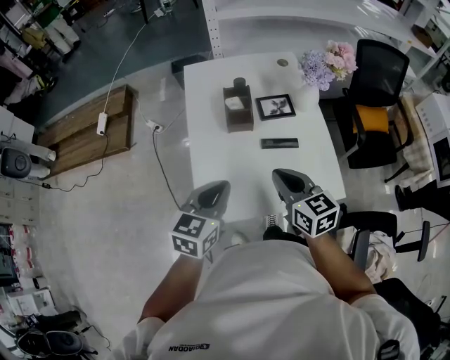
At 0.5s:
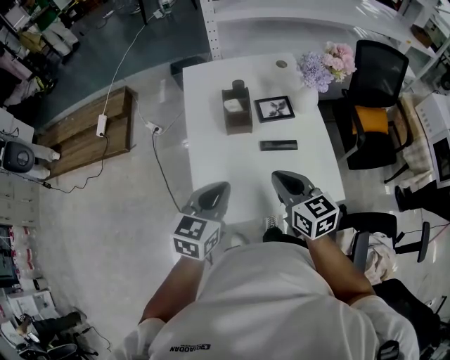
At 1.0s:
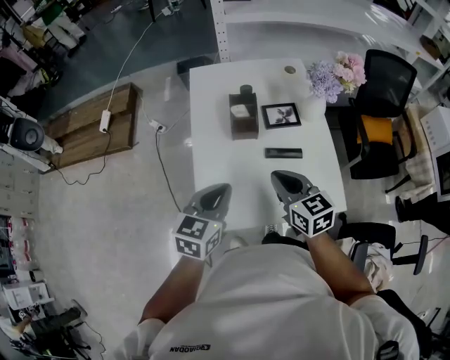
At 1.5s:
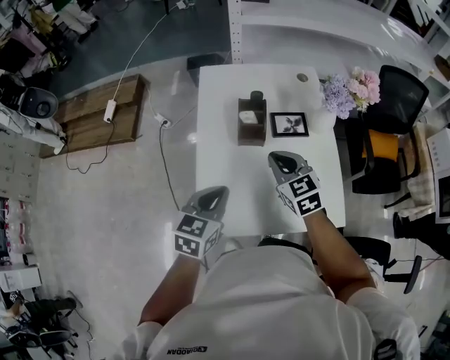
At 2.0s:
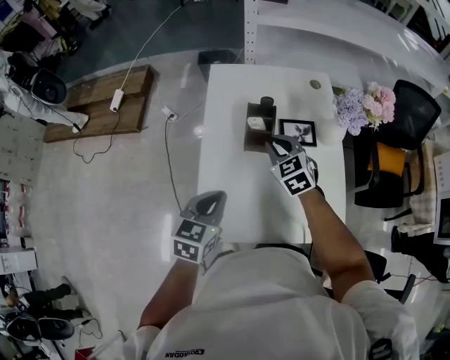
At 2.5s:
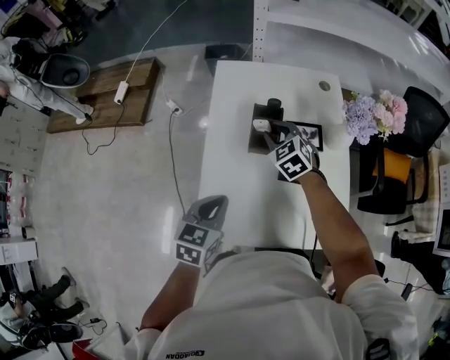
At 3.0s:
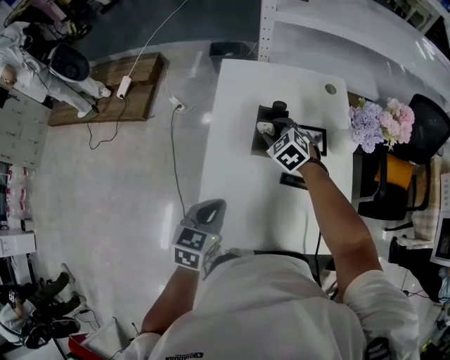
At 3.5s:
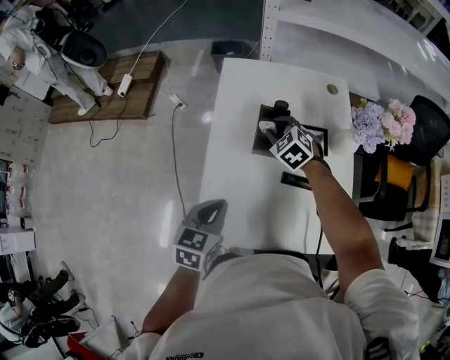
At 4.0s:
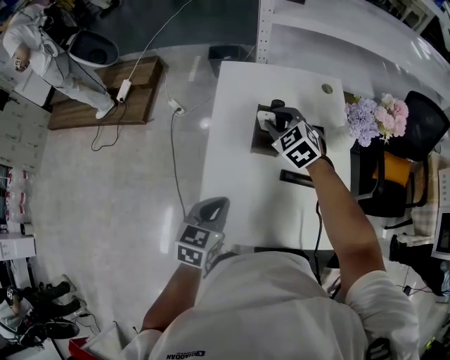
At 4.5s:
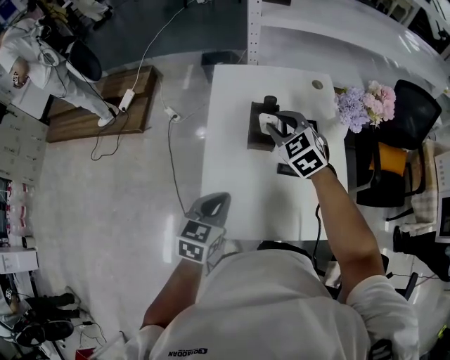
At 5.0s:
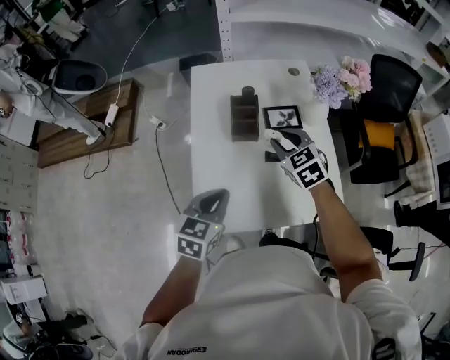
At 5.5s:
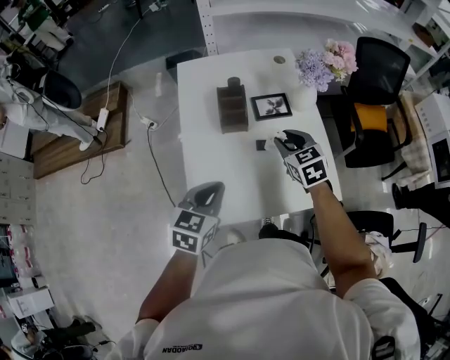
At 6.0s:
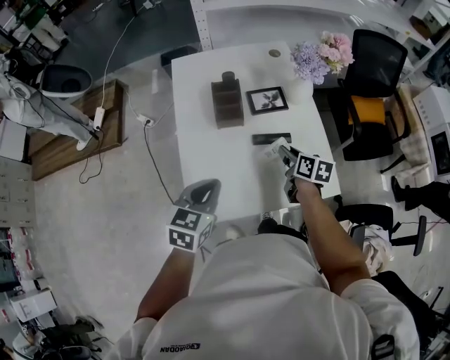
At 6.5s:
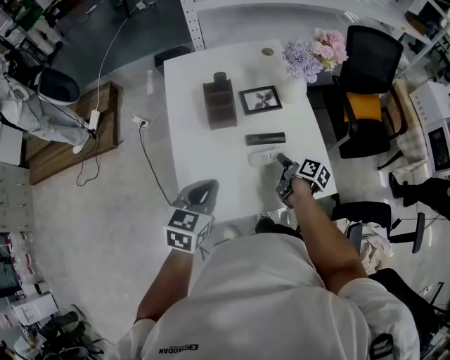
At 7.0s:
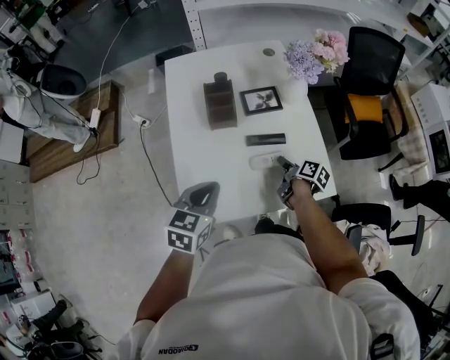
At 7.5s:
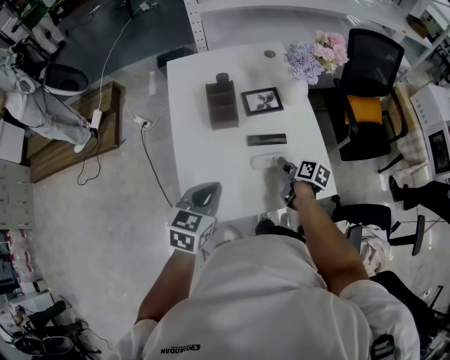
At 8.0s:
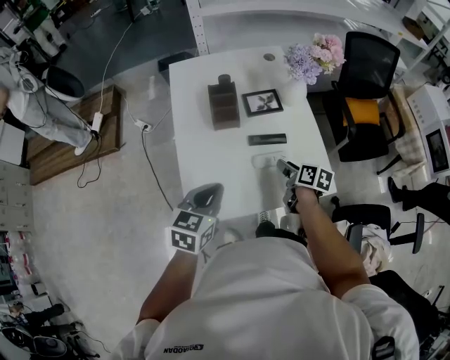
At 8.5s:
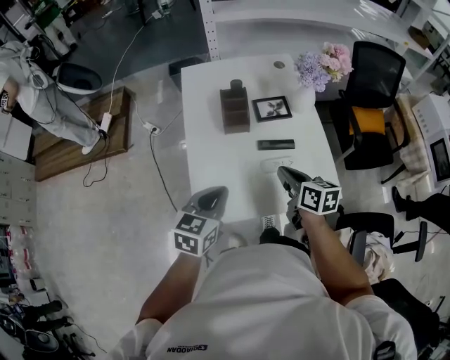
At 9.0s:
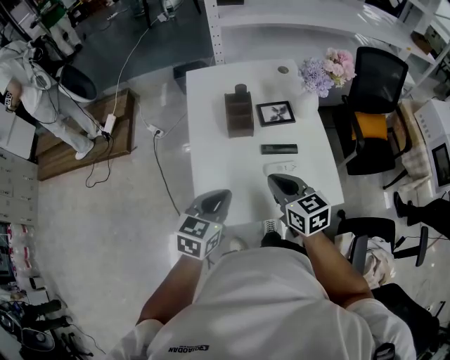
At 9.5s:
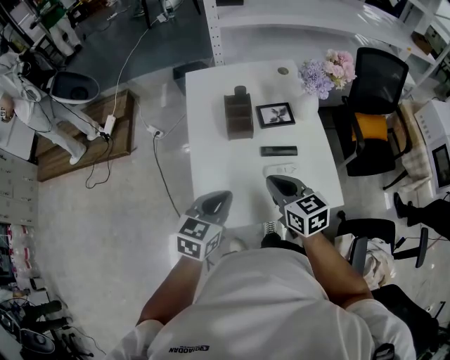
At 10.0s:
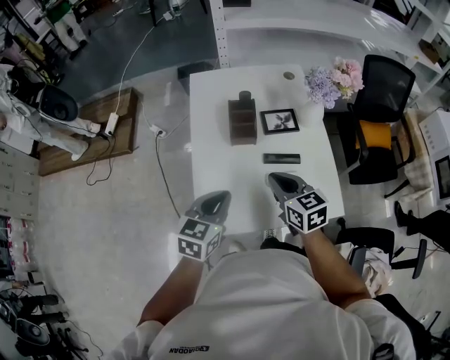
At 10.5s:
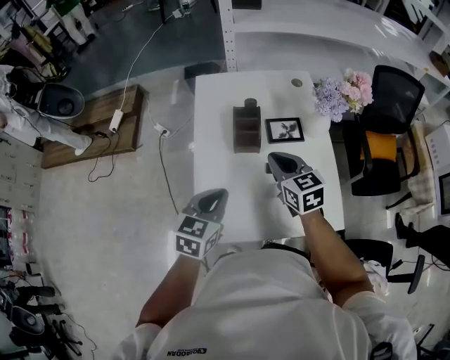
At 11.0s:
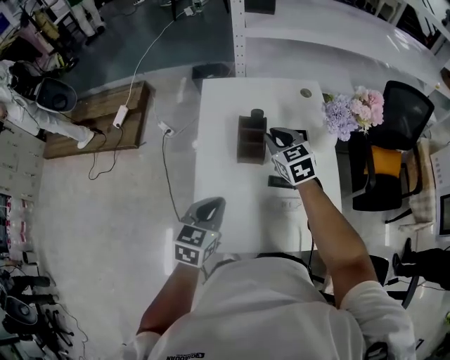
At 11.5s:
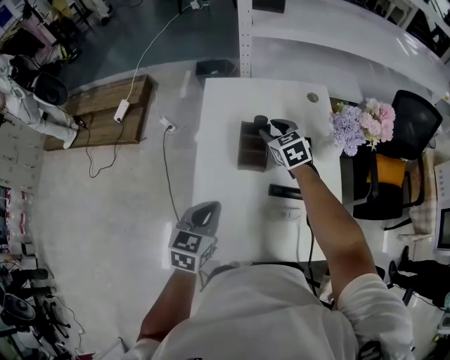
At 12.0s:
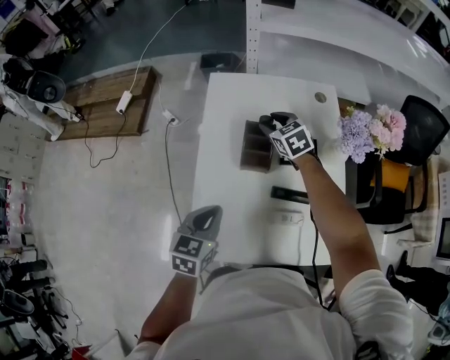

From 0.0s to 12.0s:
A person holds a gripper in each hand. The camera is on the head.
From 0.0s to 2.0s: The right gripper moves forward, approximately 20 cm, and rotates some 30 degrees. Meanwhile the left gripper goes about 5 cm forward.
From 2.0s to 4.0s: The right gripper goes roughly 5 cm forward.
From 4.0s to 6.0s: The right gripper moves to the right, backward and downward, about 30 cm, and rotates around the line of its fingers by approximately 80 degrees, clockwise from behind, while the left gripper moves roughly 5 cm.
From 6.0s to 8.0s: The right gripper goes downward and returns, about 10 cm each way.
From 8.0s to 10.0s: The right gripper moves upward and to the left, some 15 cm, twists some 40 degrees counterclockwise, seen from behind, and closes.
From 10.0s to 12.0s: The left gripper heads forward, covering roughly 10 cm. Meanwhile the right gripper moves forward, roughly 35 cm, swivels about 30 degrees, and opens its fingers.

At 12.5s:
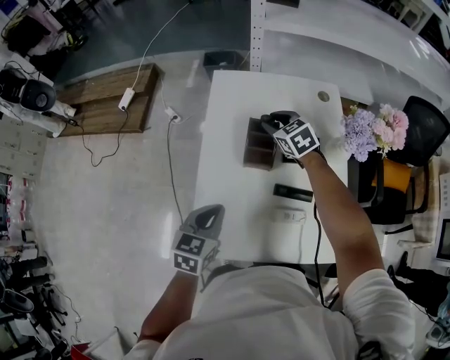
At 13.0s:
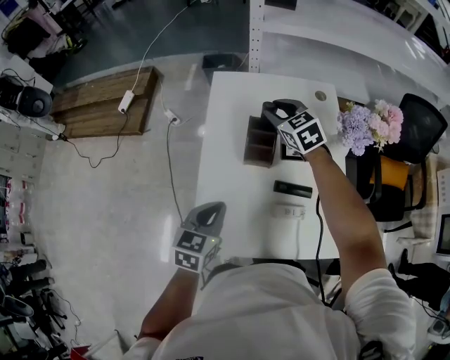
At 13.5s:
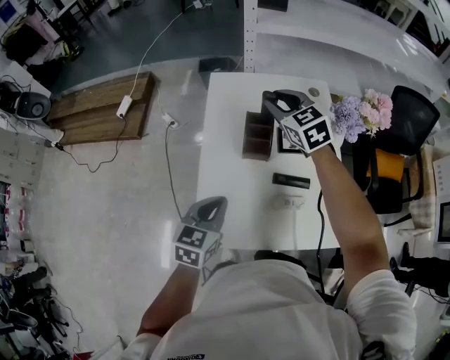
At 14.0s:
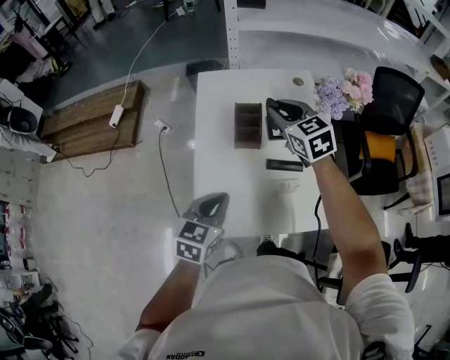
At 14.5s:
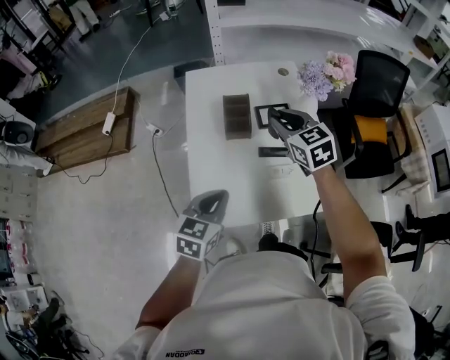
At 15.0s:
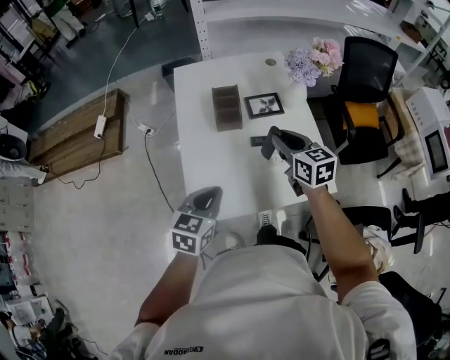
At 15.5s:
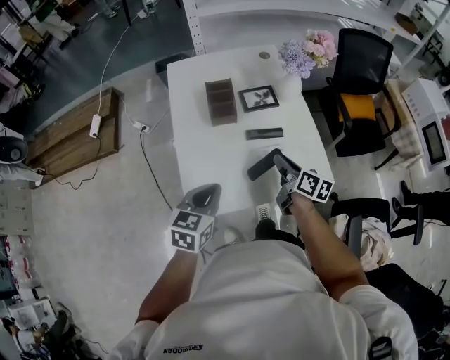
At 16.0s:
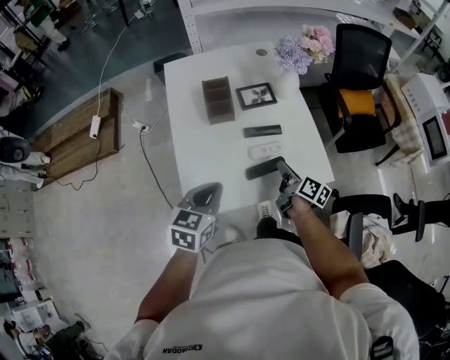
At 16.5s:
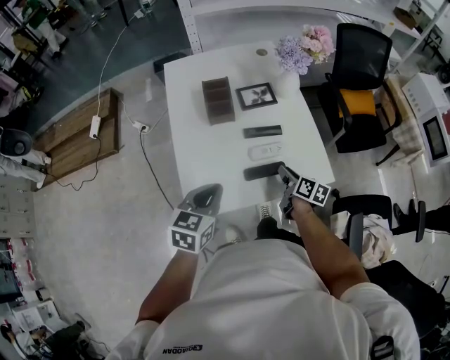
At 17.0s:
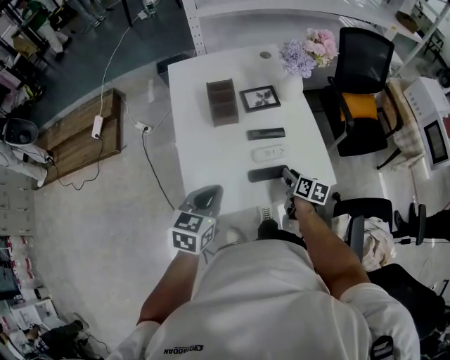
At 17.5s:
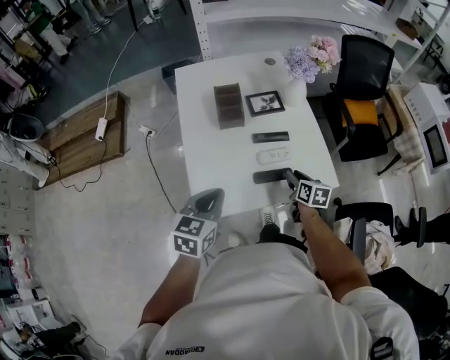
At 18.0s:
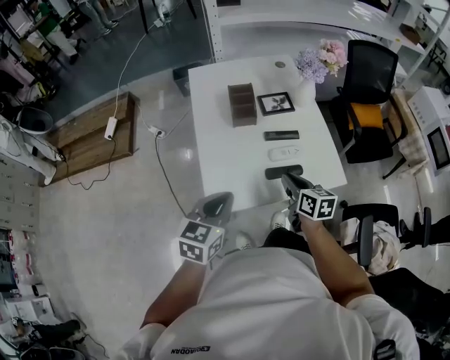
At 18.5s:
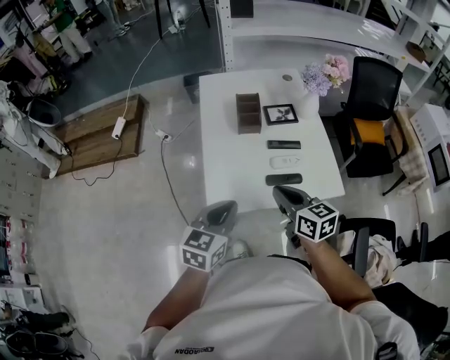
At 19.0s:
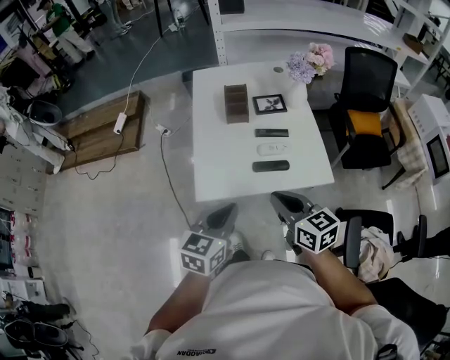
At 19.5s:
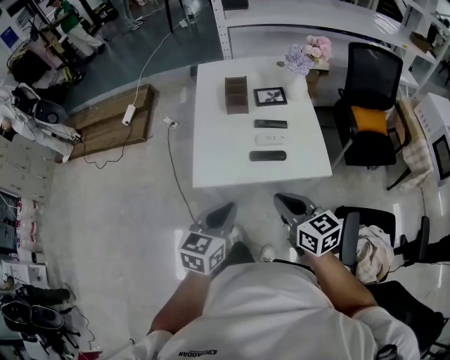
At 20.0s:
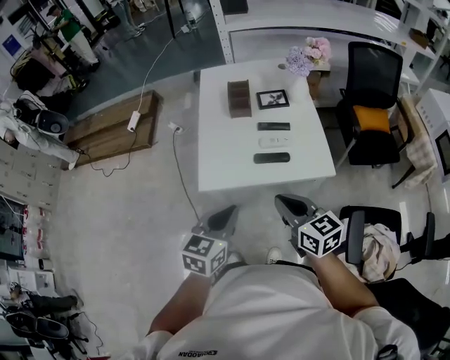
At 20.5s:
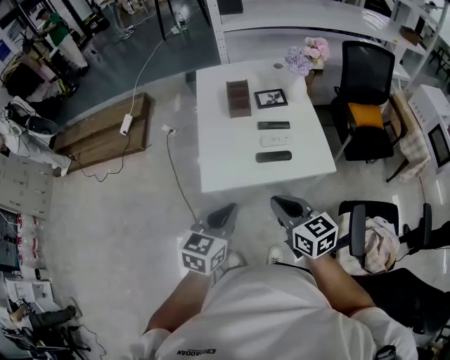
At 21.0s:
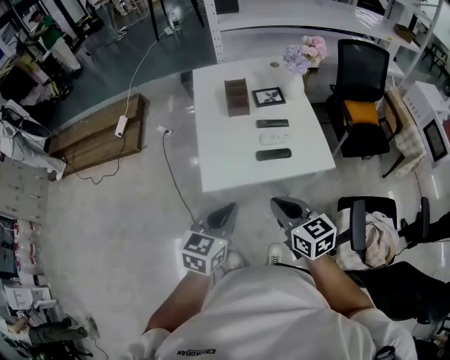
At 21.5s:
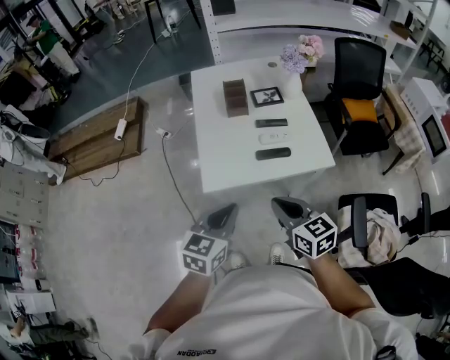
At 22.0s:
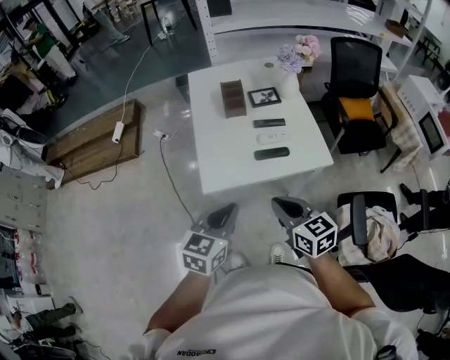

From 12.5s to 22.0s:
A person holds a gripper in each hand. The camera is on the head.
From 12.5s to 14.5s: The left gripper moves backward, roughly 10 cm; the right gripper moves backward and upward, about 25 cm, and turns by approximately 20 degrees.
From 14.5s to 16.5s: The right gripper is displaced downward, backward and to the right by approximately 30 cm, and rotates around the line of its fingers by some 60 degrees, clockwise from behind.
From 16.5s to 18.0s: The right gripper heads upward, to the left and backward, covering roughly 15 cm, and turns by about 20 degrees; the left gripper shifts about 5 cm backward.
From 18.0s to 20.0s: The right gripper travels backward and upward by about 20 cm, and turns by roughly 30 degrees, while the left gripper is displaced backward and to the right by roughly 20 cm.
From 20.0s to 22.0s: The two grippers go approximately 5 cm to the left.

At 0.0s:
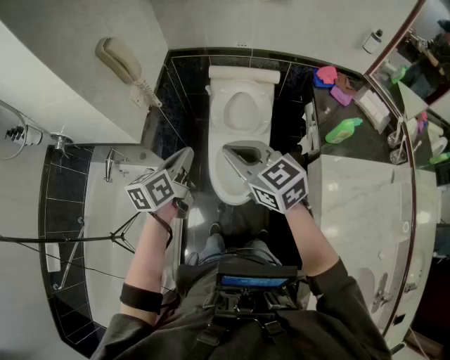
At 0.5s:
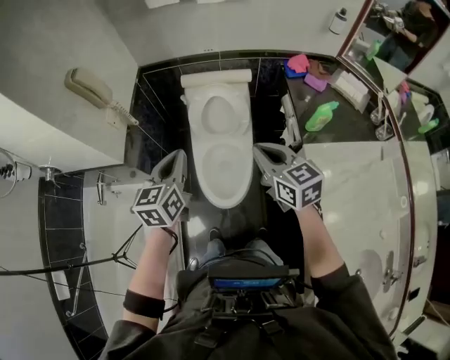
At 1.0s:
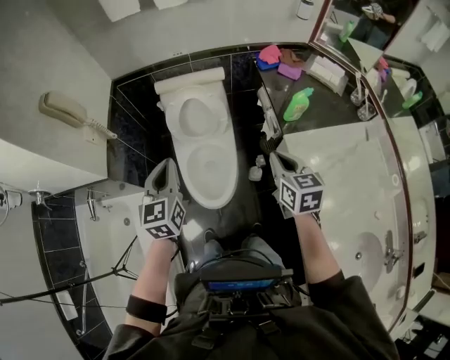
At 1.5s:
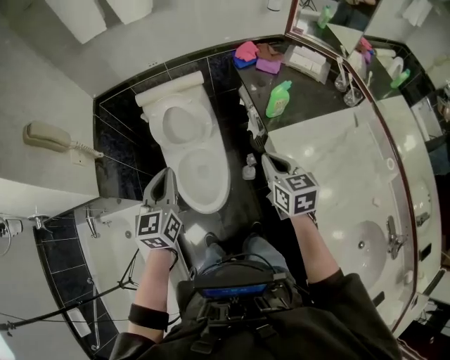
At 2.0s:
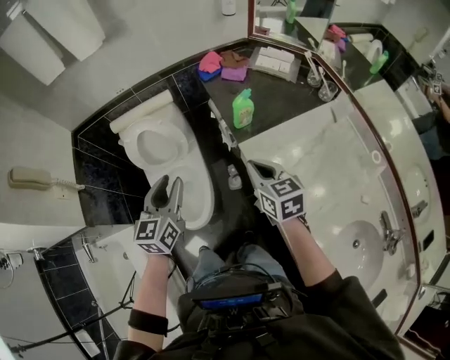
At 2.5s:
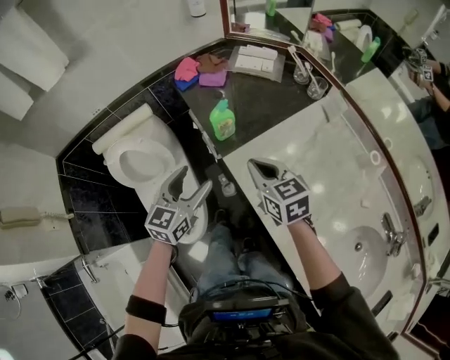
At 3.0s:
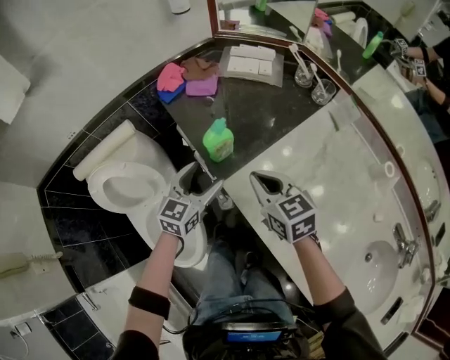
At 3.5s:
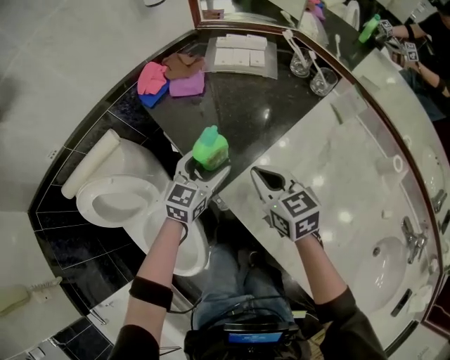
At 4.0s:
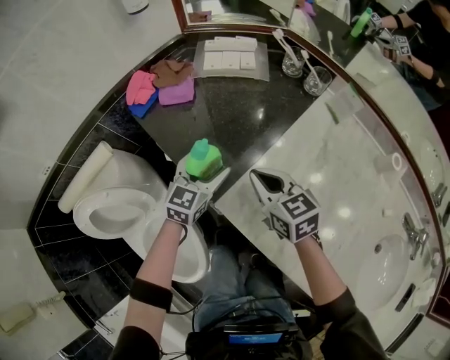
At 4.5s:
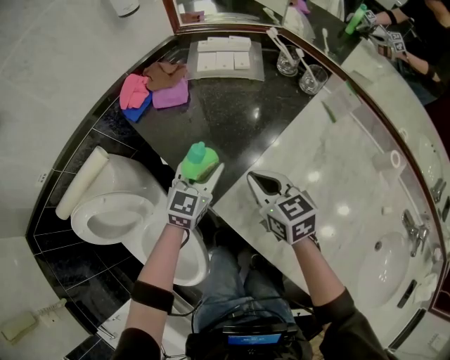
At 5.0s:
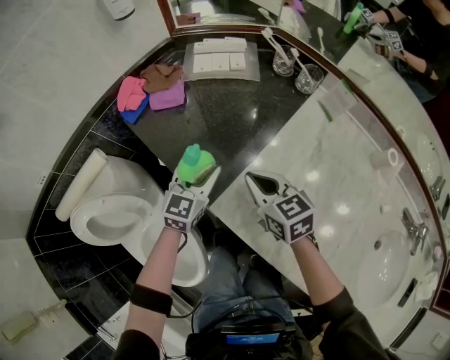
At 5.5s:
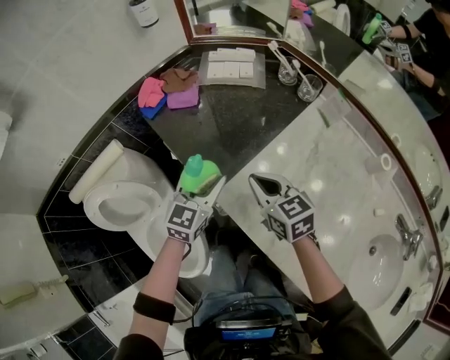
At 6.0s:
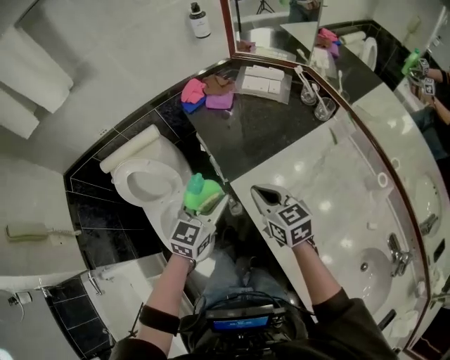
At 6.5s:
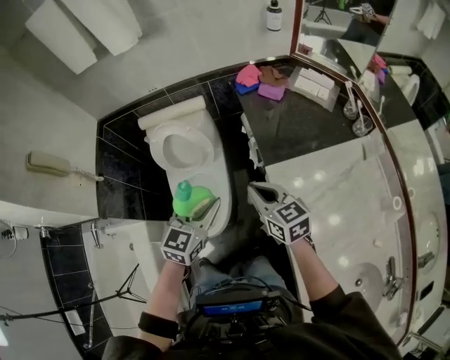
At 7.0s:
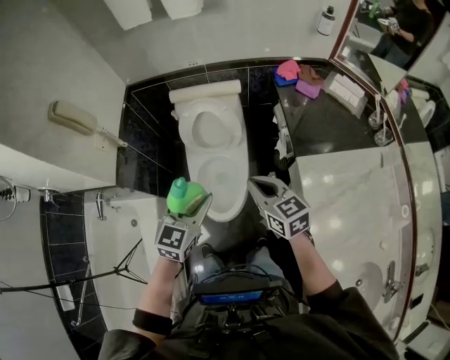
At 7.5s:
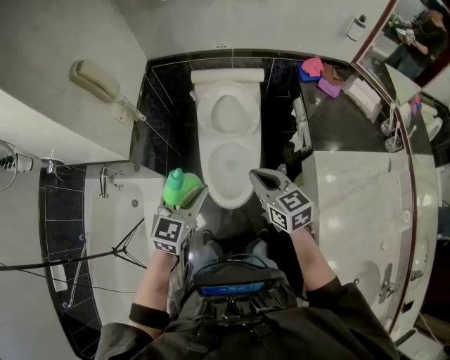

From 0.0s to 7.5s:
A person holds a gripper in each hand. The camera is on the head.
From 0.0s to 2.0s: The left gripper shifts by some 30 cm, changes its angle by roughly 30 degrees, and opens its fingers, while the right gripper moves roughly 40 cm, and changes its angle by approximately 50 degrees.
From 2.0s to 4.0s: The right gripper shifts by approximately 25 cm, while the left gripper shifts by about 50 cm, rotates some 50 degrees, and opens up.
From 4.0s to 5.5s: The left gripper goes approximately 10 cm upward and backward, and closes, while the right gripper changes place by some 5 cm.
From 5.5s to 7.5s: The two grippers travel together, roughly 50 cm. The left gripper rotates roughly 40 degrees; the right gripper swivels roughly 40 degrees.
